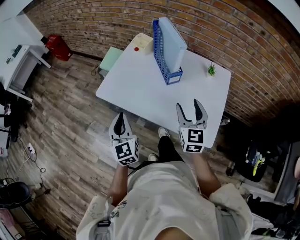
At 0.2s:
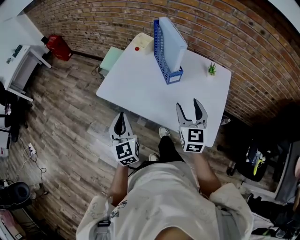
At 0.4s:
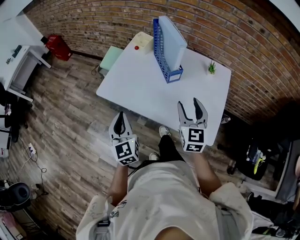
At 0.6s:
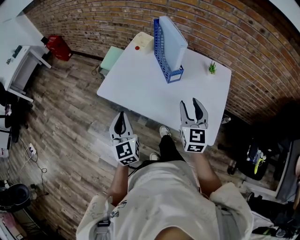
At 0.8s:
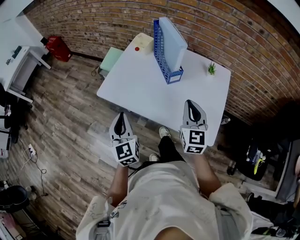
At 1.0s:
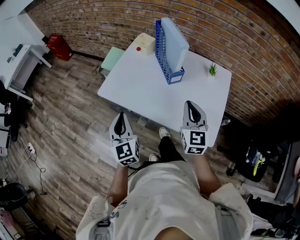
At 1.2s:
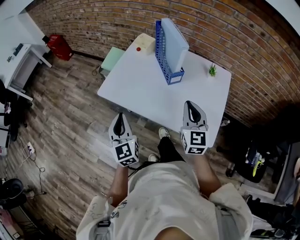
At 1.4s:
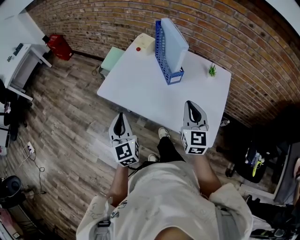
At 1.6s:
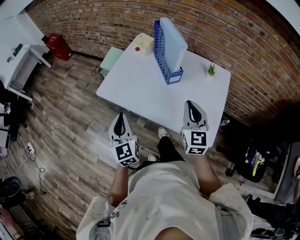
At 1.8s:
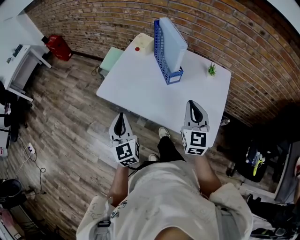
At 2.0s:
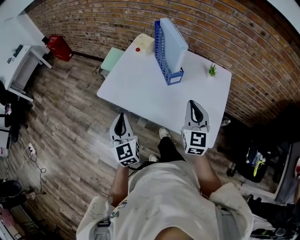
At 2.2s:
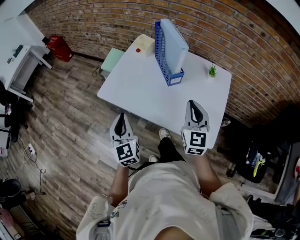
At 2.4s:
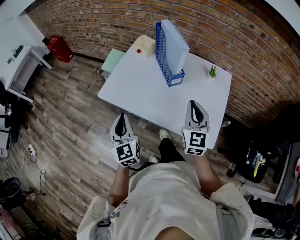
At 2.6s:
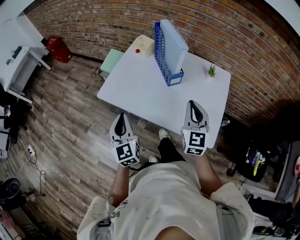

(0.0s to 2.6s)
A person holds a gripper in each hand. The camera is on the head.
0.0s - 1.2s: The right gripper closes up.
1.2s - 2.6s: The grippers make only small movements.

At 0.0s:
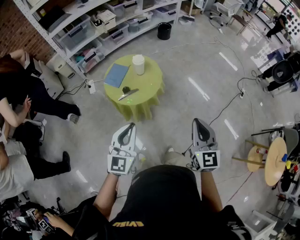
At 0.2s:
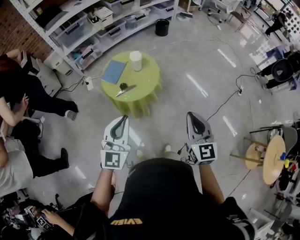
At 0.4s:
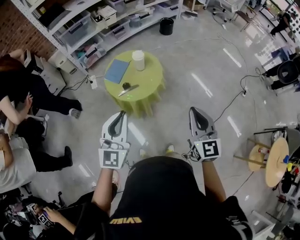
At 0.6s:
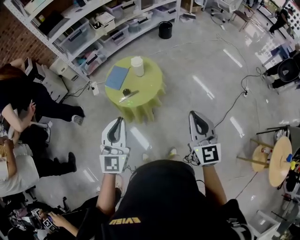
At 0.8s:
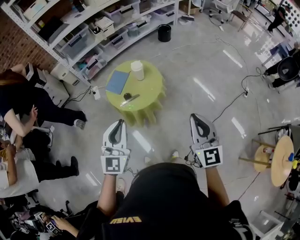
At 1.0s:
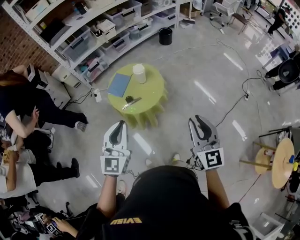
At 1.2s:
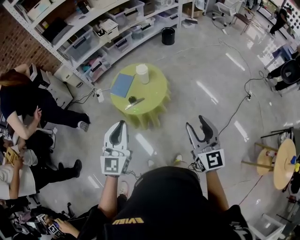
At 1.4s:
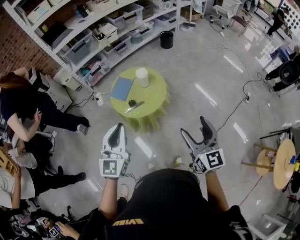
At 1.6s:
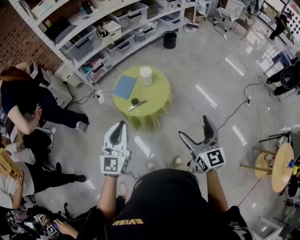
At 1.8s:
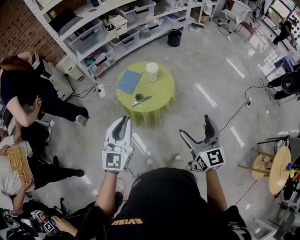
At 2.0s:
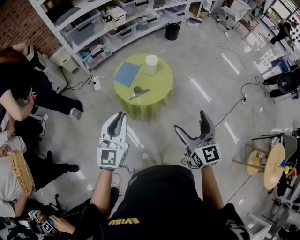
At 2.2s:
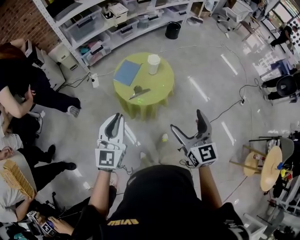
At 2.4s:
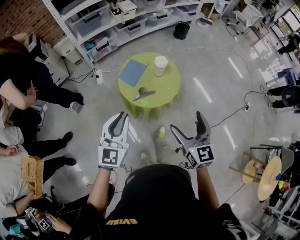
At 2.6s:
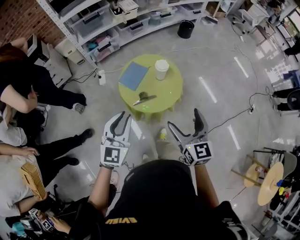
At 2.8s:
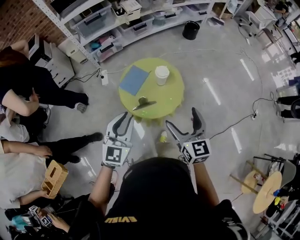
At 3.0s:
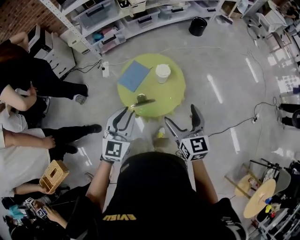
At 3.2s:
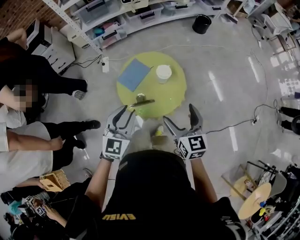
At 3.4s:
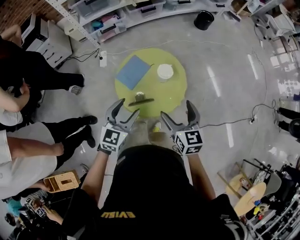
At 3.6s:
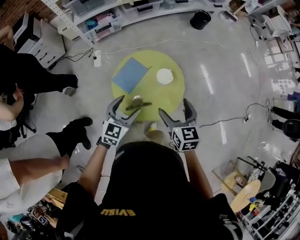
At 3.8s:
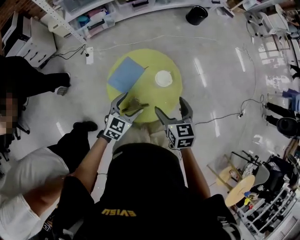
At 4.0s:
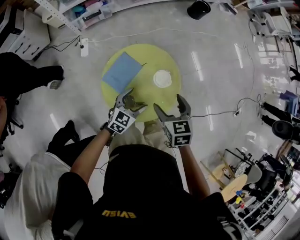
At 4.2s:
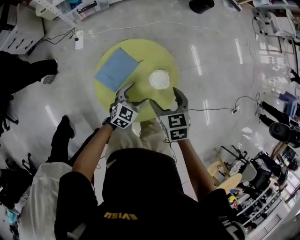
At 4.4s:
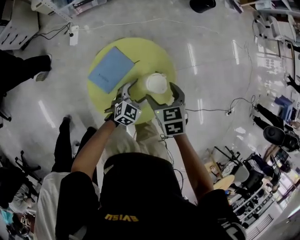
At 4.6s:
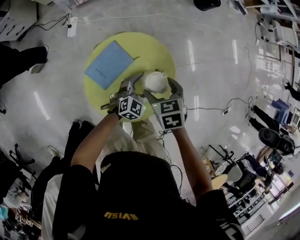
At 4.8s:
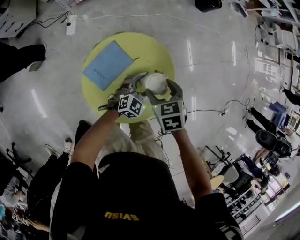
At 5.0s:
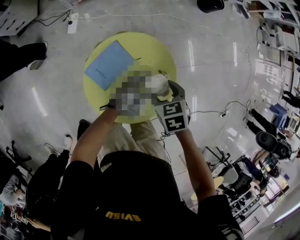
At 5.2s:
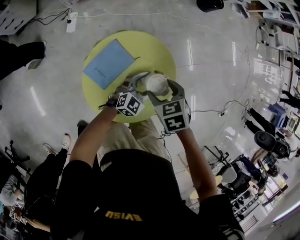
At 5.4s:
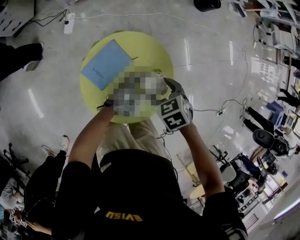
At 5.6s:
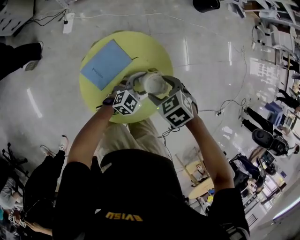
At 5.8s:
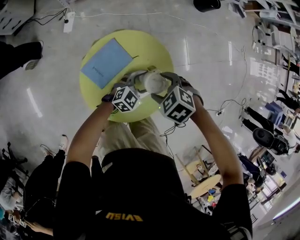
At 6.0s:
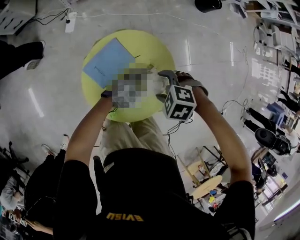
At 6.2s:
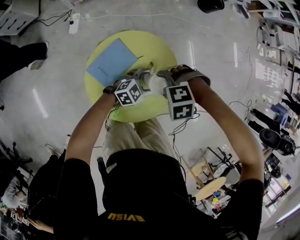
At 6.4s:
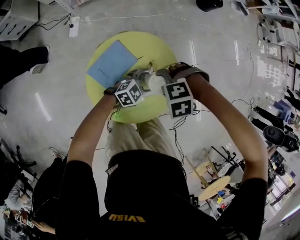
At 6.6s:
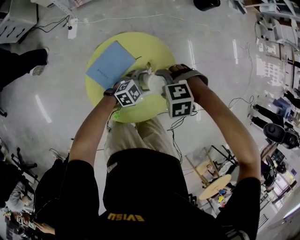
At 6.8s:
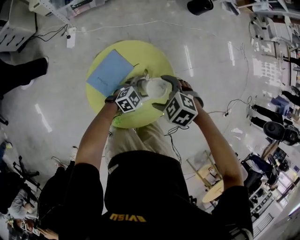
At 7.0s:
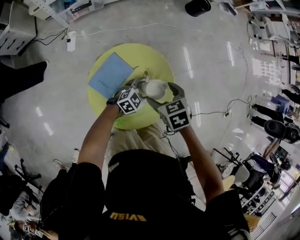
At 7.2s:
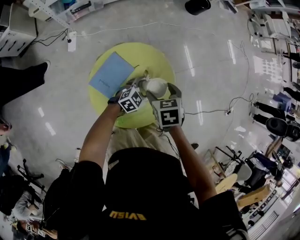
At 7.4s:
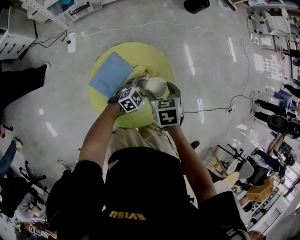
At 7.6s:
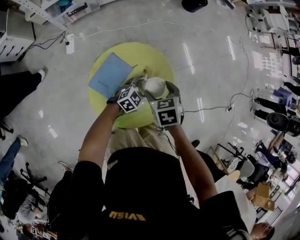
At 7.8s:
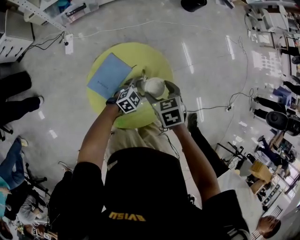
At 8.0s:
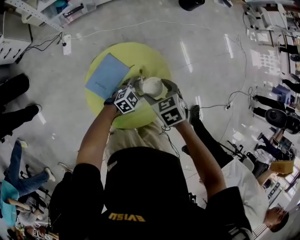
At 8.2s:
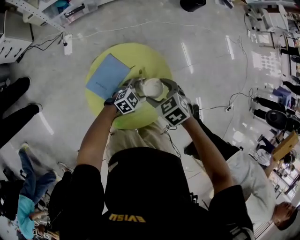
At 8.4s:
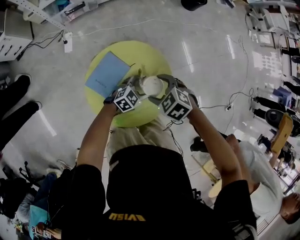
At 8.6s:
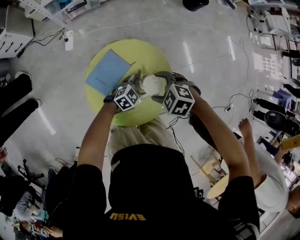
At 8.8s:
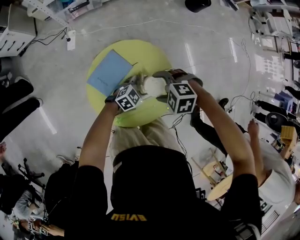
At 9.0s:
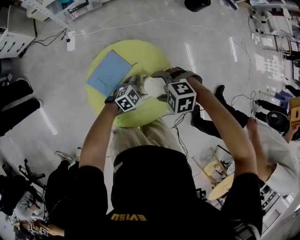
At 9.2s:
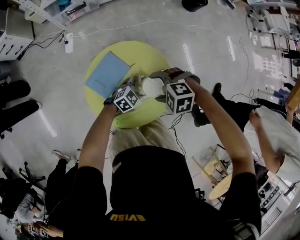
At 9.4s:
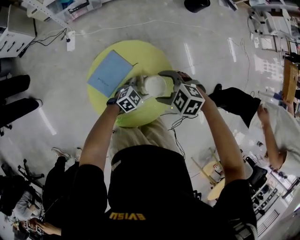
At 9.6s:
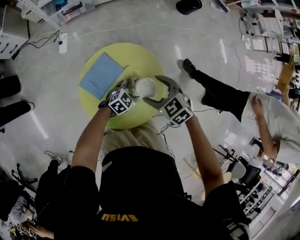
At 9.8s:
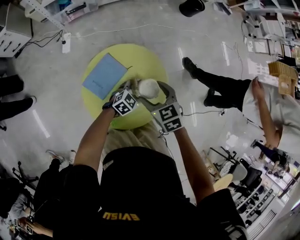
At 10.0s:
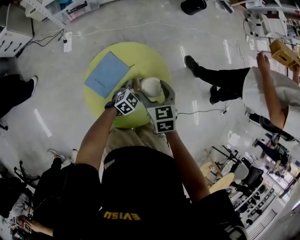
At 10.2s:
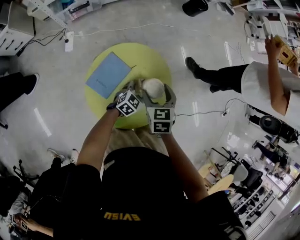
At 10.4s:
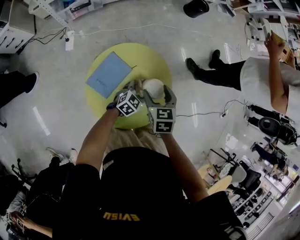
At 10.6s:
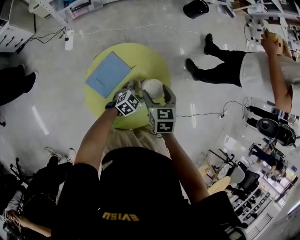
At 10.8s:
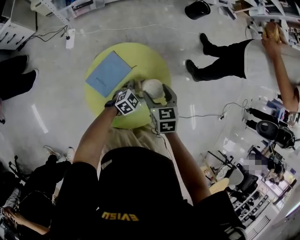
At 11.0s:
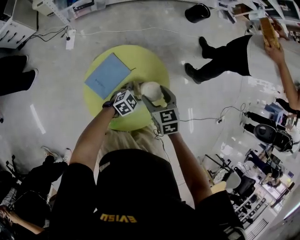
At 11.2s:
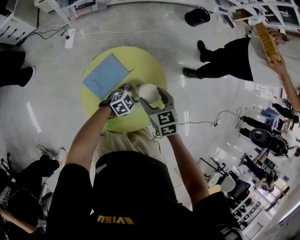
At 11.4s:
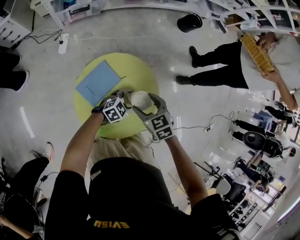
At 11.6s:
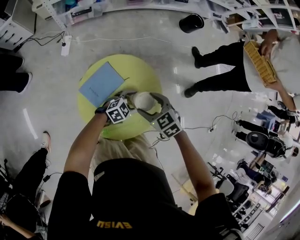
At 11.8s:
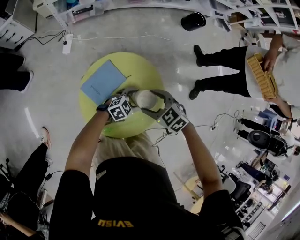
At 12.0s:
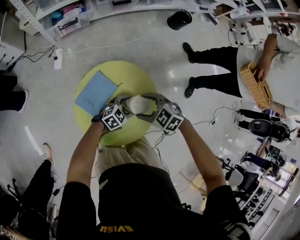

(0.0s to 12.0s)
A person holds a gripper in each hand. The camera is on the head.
0.0s - 1.6s: The right gripper shifts by approximately 5 cm, and opens; the left gripper is displaced to the left, forward and upward by about 10 cm.
1.6s - 3.0s: The two grippers go roughly 25 cm forward and downward.
3.0s - 4.4s: The right gripper moves forward and downward, roughly 40 cm, and tips its fingers downward by roughly 40 degrees, while the left gripper moves downward and forward, some 50 cm, turns by about 30 degrees, and opens.
4.4s - 6.0s: The right gripper travels downward by roughly 5 cm, and twists about 60 degrees counterclockwise, seen from behind; the left gripper shifts by some 5 cm.
6.0s - 7.6s: The right gripper rolls clockwise, seen from behind, by roughly 70 degrees.
7.6s - 9.0s: The right gripper rotates around the line of its fingers by some 70 degrees, counterclockwise from behind.
9.0s - 10.4s: The right gripper twists some 80 degrees clockwise, seen from behind.
10.4s - 12.0s: The right gripper rotates some 60 degrees.

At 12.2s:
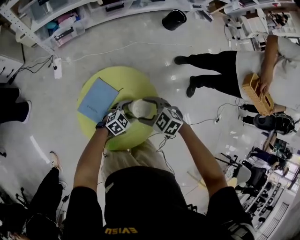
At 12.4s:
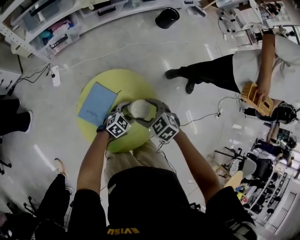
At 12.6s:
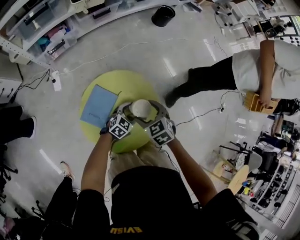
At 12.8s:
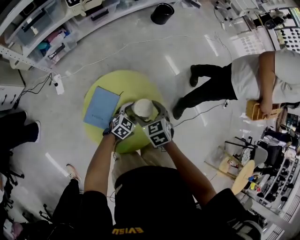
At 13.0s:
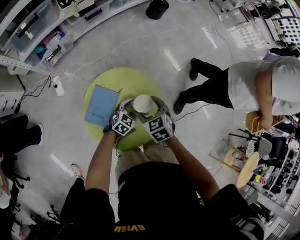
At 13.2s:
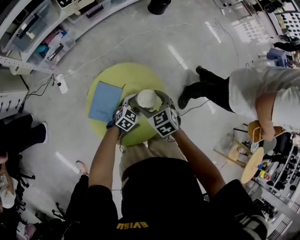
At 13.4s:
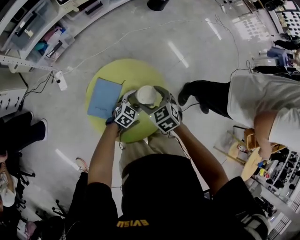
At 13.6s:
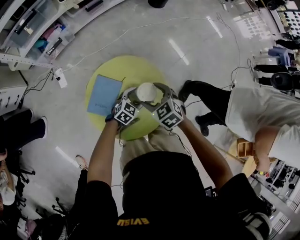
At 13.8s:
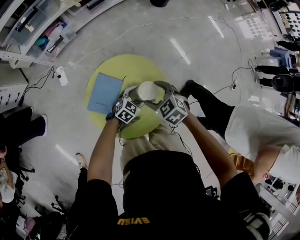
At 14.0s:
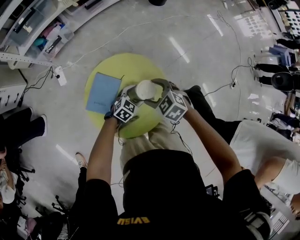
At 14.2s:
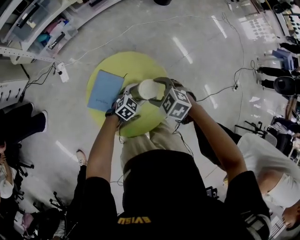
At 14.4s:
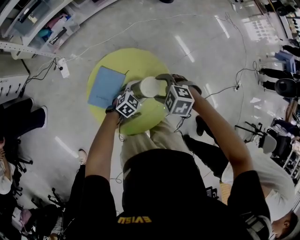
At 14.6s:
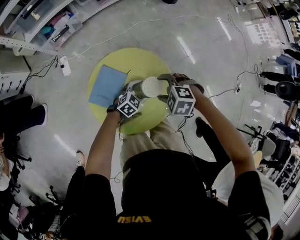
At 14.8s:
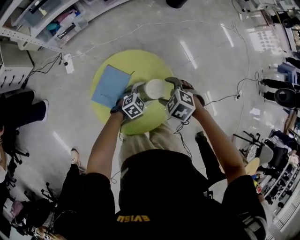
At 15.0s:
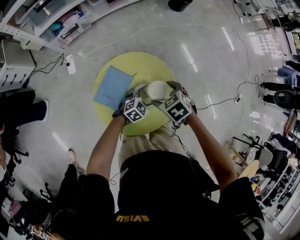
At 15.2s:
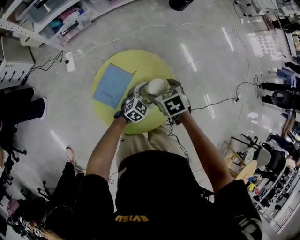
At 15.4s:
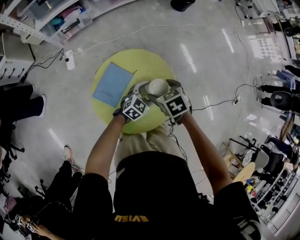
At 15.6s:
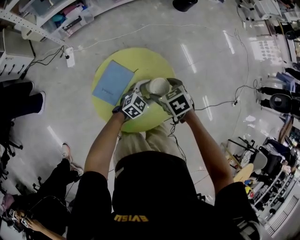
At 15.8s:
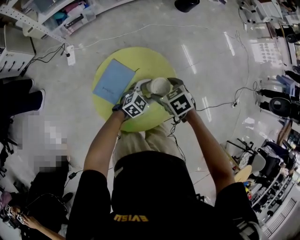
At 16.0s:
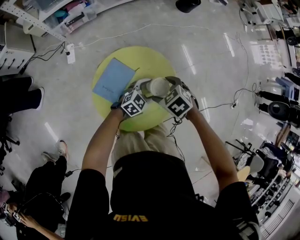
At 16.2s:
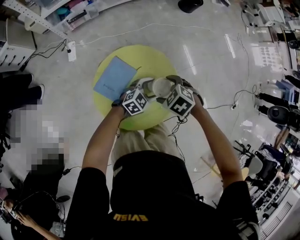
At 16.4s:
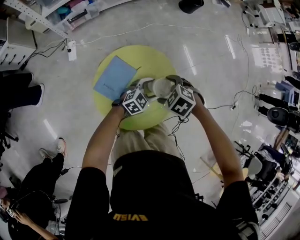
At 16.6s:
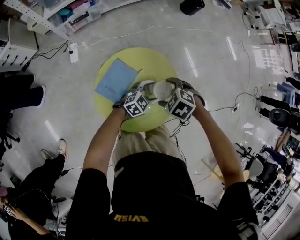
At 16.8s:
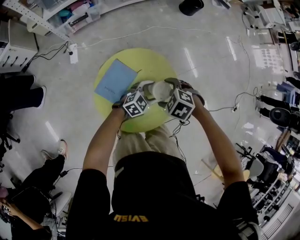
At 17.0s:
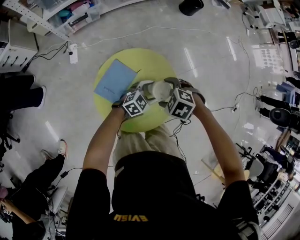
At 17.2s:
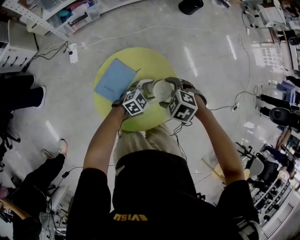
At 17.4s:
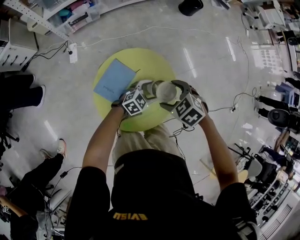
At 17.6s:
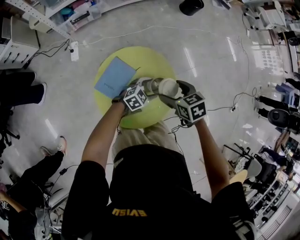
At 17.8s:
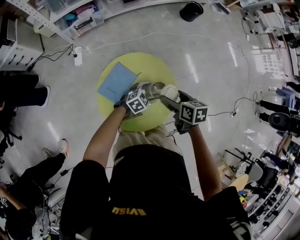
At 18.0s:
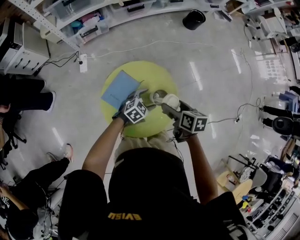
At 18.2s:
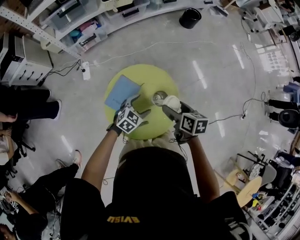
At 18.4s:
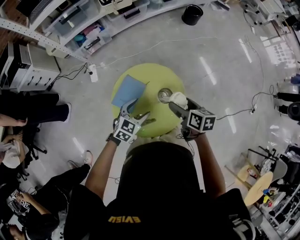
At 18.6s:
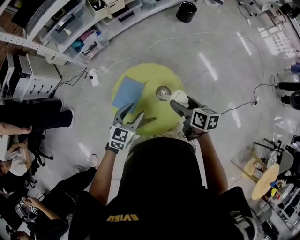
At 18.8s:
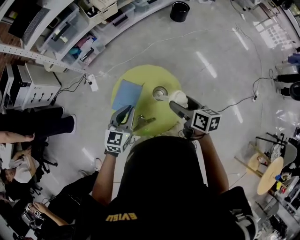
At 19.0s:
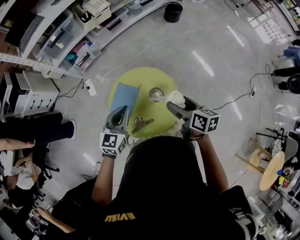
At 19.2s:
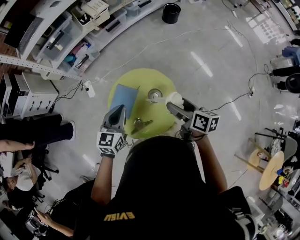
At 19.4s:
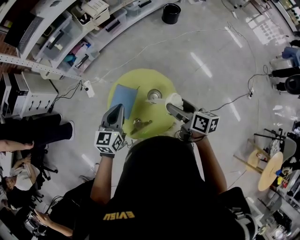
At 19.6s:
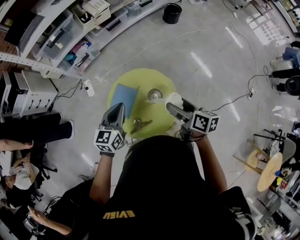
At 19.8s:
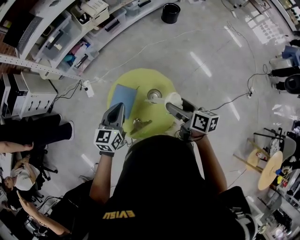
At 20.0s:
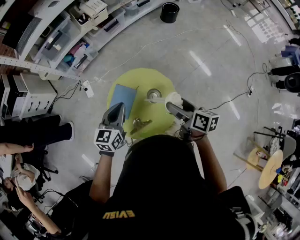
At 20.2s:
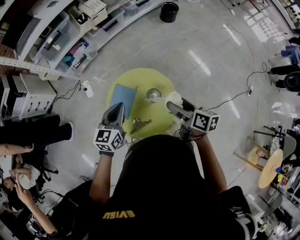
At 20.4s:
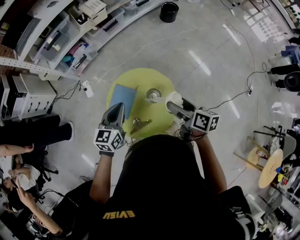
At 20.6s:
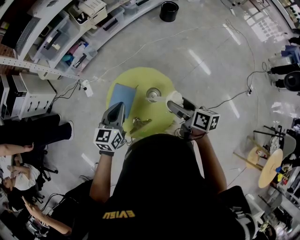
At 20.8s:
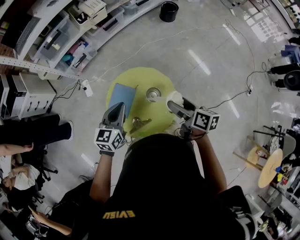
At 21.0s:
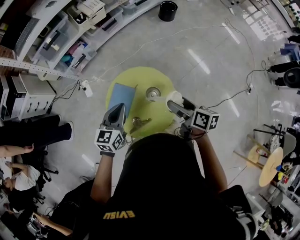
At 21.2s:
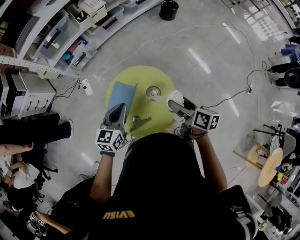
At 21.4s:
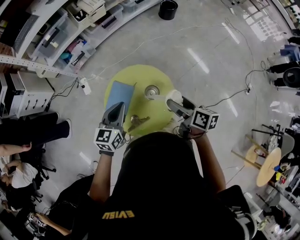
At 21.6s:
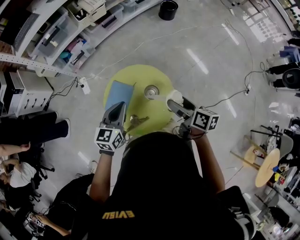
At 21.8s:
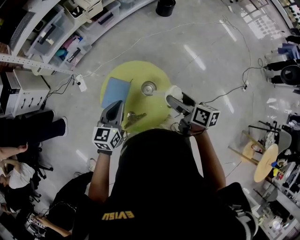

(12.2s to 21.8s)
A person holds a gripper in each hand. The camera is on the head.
12.2s - 13.8s: The right gripper changes its angle by roughly 30 degrees.
13.8s - 15.4s: The right gripper changes its angle by roughly 20 degrees.
15.4s - 17.0s: The right gripper twists some 40 degrees counterclockwise, seen from behind.
17.0s - 18.6s: The right gripper goes about 15 cm upward, and rotates around the line of its fingers by about 80 degrees, clockwise from behind; the left gripper travels upward by about 20 cm, and turns by approximately 20 degrees.
18.6s - 20.2s: The two grippers go about 5 cm upward. The left gripper closes up.
20.2s - 21.8s: The grippers stay close to where they were, moving slightly.
